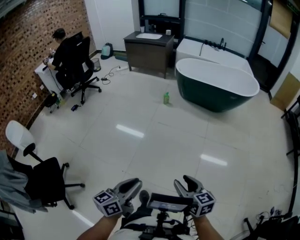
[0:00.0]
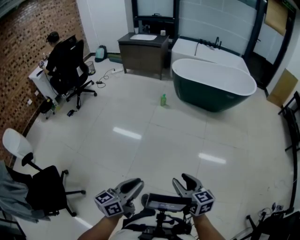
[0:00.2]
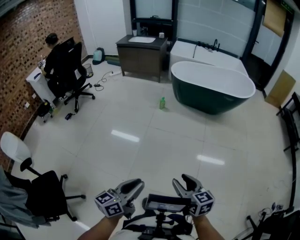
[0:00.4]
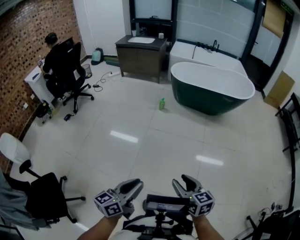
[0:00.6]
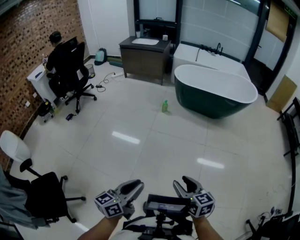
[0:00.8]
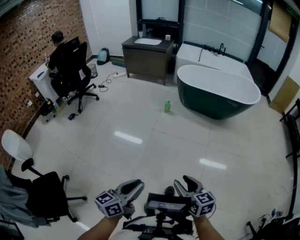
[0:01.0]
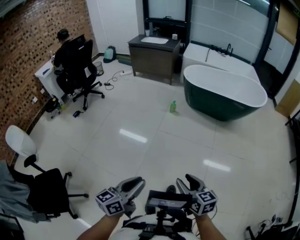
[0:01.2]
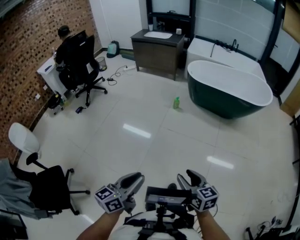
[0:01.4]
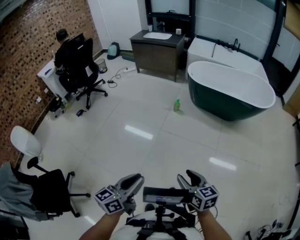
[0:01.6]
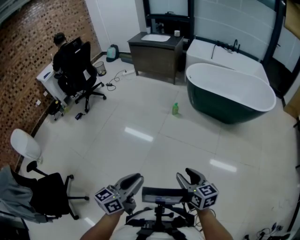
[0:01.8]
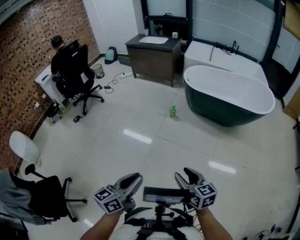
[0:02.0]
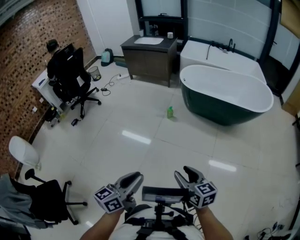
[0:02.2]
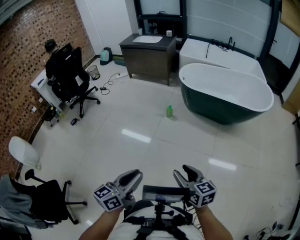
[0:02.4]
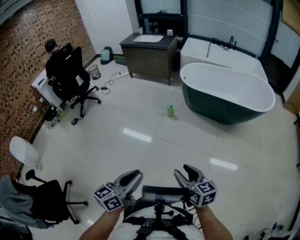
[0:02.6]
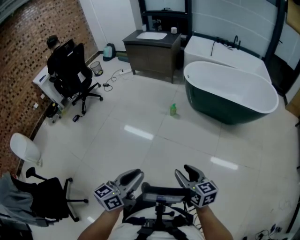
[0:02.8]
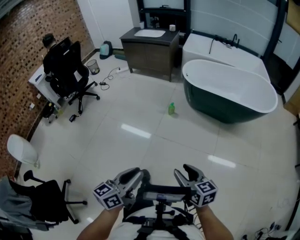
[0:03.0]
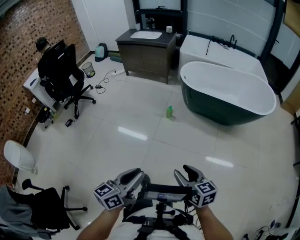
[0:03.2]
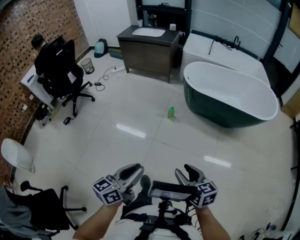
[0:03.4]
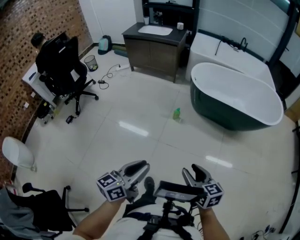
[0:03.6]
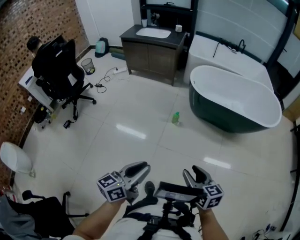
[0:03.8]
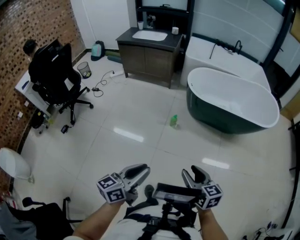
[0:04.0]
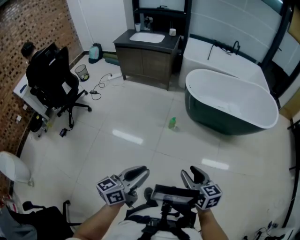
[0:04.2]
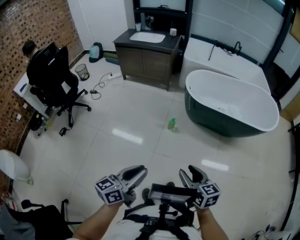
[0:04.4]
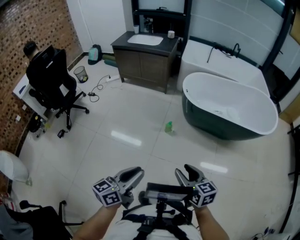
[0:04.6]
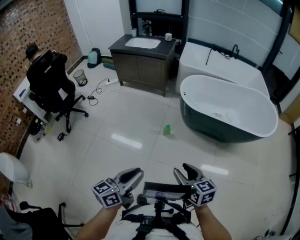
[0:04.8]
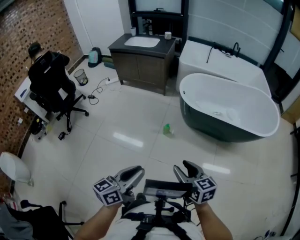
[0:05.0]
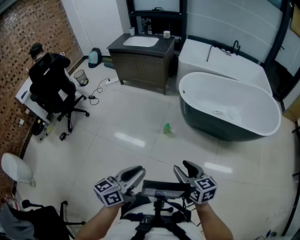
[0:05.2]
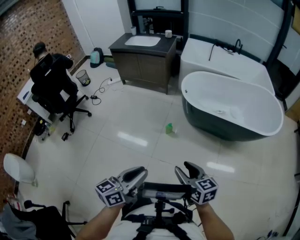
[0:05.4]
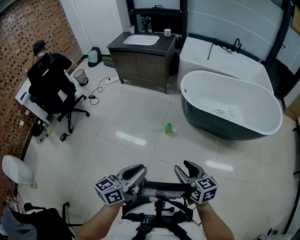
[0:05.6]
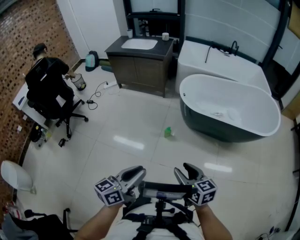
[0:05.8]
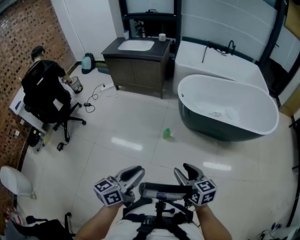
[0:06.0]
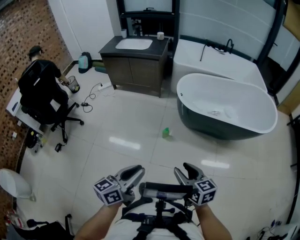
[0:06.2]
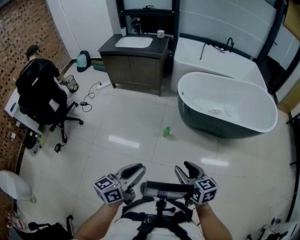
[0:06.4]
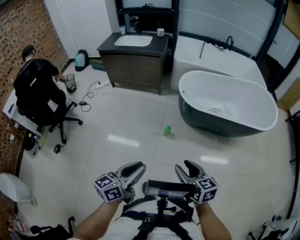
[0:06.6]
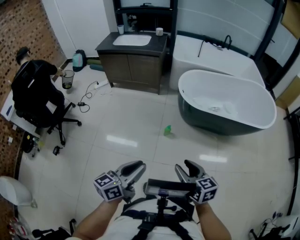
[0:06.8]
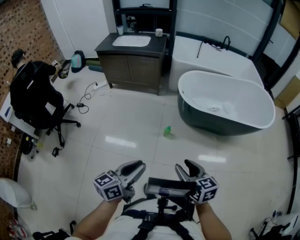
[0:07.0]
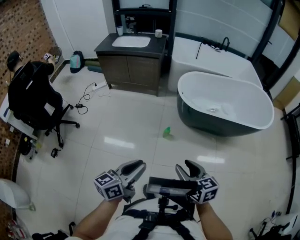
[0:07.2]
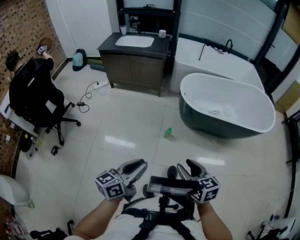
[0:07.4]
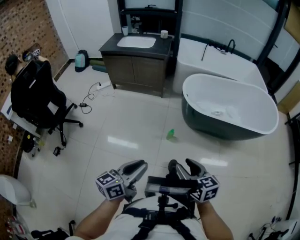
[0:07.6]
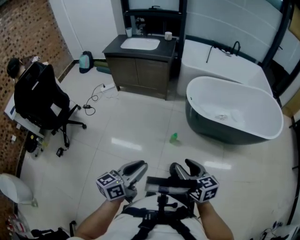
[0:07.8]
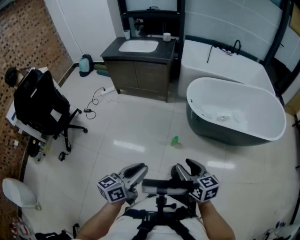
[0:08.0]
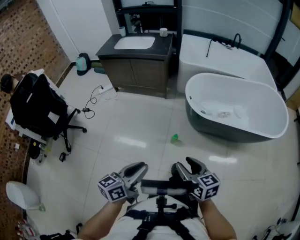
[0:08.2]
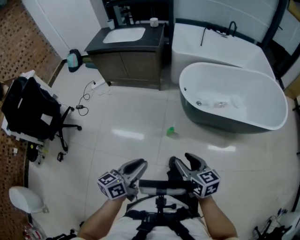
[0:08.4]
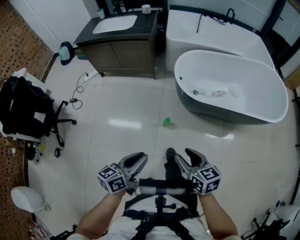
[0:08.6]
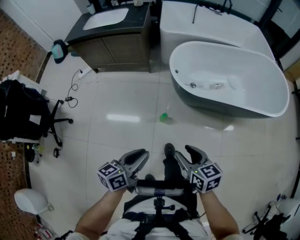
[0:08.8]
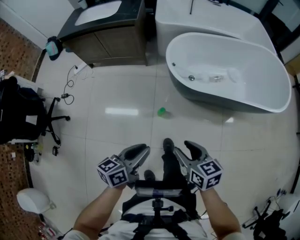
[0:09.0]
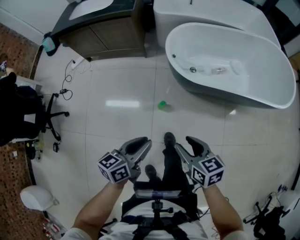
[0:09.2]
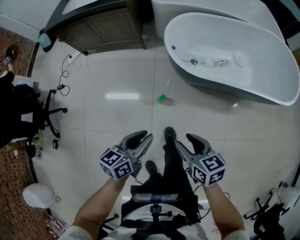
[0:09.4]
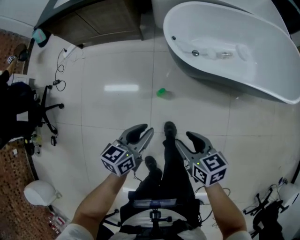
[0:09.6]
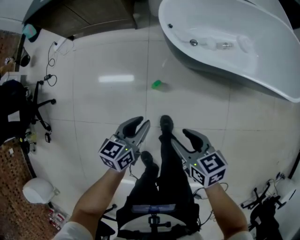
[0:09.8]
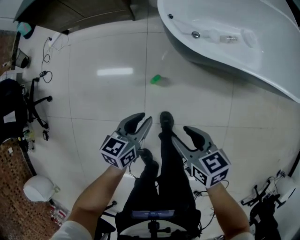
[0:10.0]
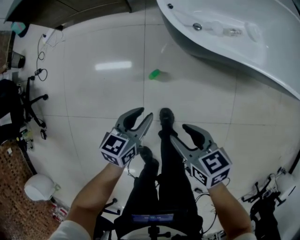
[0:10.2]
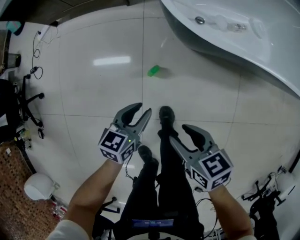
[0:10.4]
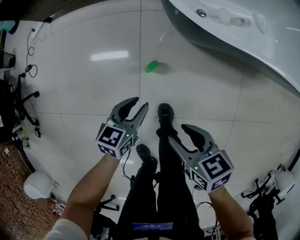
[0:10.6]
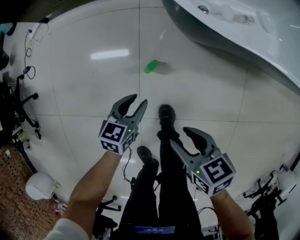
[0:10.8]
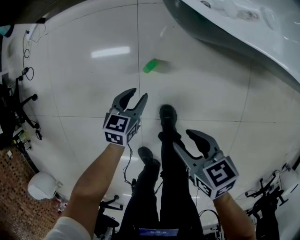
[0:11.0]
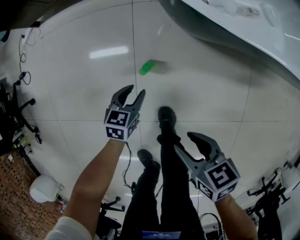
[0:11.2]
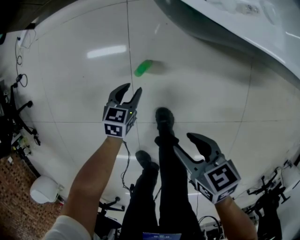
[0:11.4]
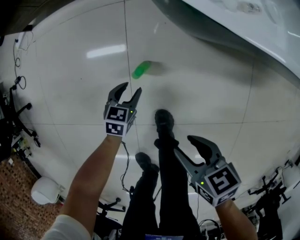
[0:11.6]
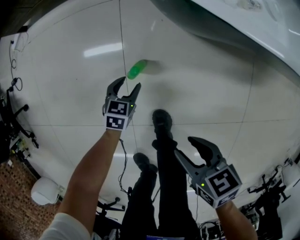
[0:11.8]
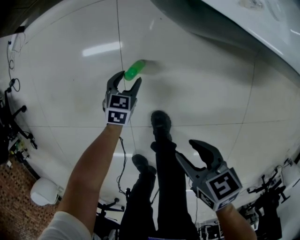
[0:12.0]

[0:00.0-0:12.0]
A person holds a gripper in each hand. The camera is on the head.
0:00.0 to 0:01.6: The two grippers go about 20 cm forward.
0:01.6 to 0:03.0: Both grippers travel together forward, some 15 cm.
0:03.0 to 0:04.4: Both grippers travel together forward and to the left, roughly 25 cm.
0:04.4 to 0:06.0: Both grippers travel together forward, about 10 cm.
0:06.0 to 0:07.6: The grippers both shift to the left and forward by about 10 cm.
0:07.6 to 0:09.0: The right gripper moves forward, downward and to the right, about 20 cm. Meanwhile the left gripper heads forward, to the right and downward, covering about 25 cm.
0:09.0 to 0:10.4: The right gripper goes some 25 cm downward. The left gripper goes roughly 30 cm downward and forward, and rotates about 20 degrees.
0:10.4 to 0:12.0: The right gripper heads downward, covering about 15 cm, while the left gripper moves downward, some 30 cm, turns by about 30 degrees, and opens its fingers.

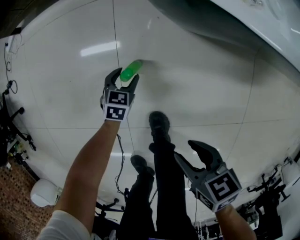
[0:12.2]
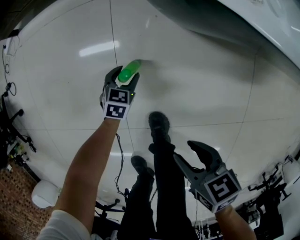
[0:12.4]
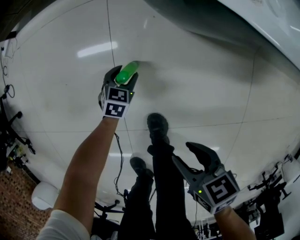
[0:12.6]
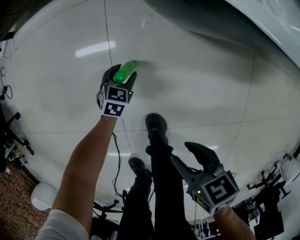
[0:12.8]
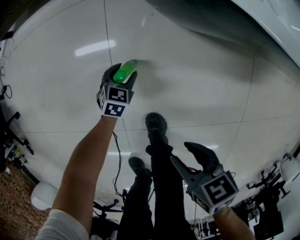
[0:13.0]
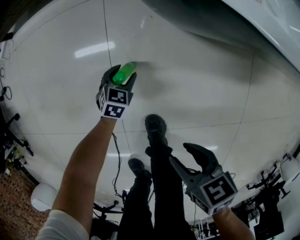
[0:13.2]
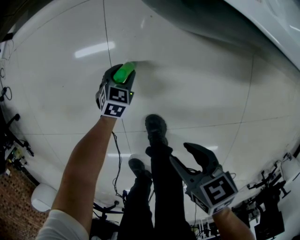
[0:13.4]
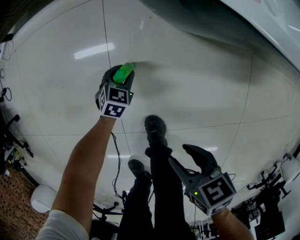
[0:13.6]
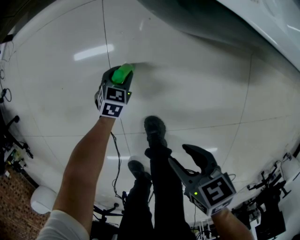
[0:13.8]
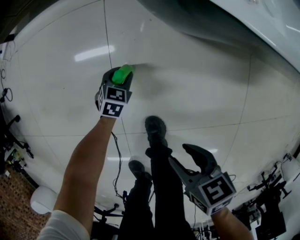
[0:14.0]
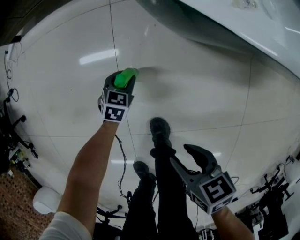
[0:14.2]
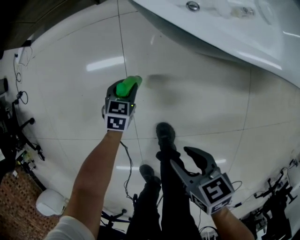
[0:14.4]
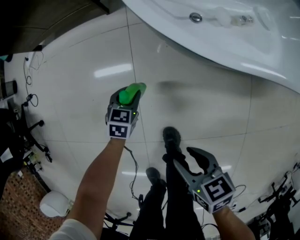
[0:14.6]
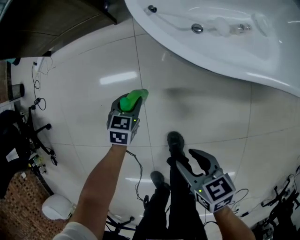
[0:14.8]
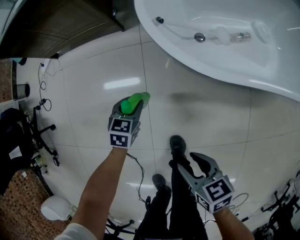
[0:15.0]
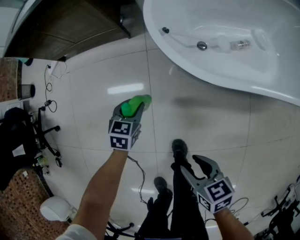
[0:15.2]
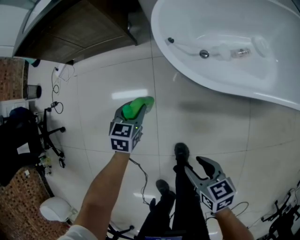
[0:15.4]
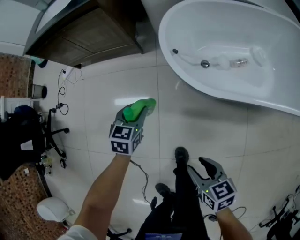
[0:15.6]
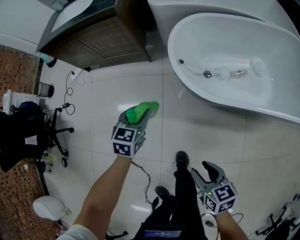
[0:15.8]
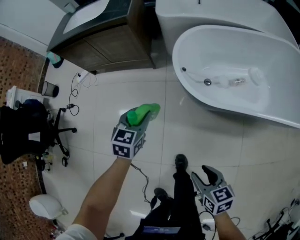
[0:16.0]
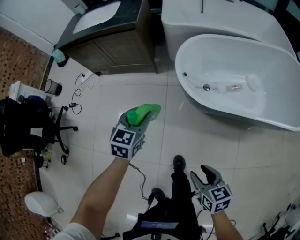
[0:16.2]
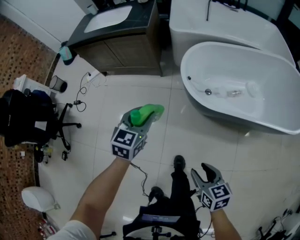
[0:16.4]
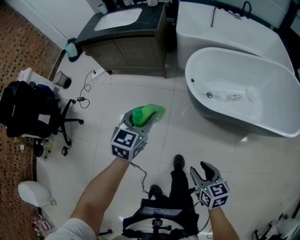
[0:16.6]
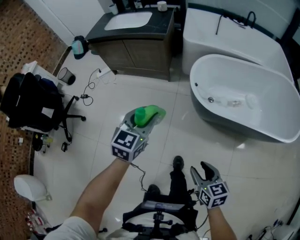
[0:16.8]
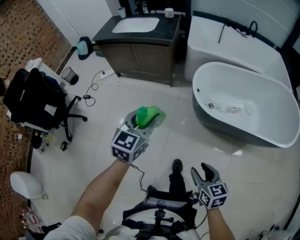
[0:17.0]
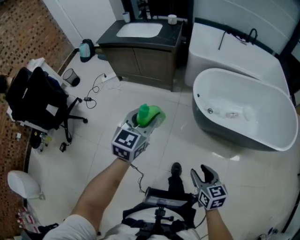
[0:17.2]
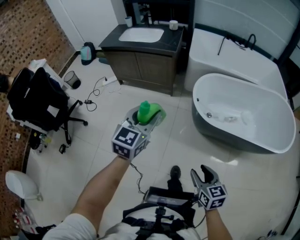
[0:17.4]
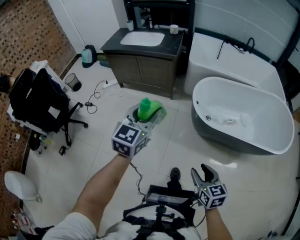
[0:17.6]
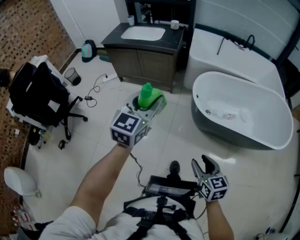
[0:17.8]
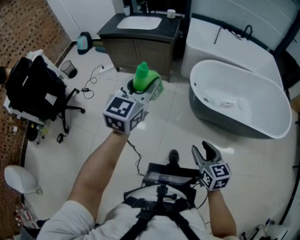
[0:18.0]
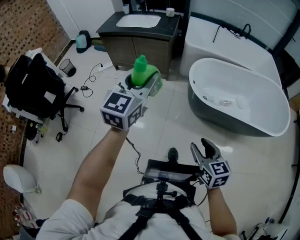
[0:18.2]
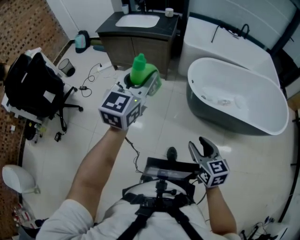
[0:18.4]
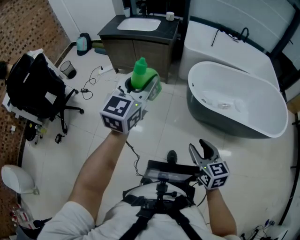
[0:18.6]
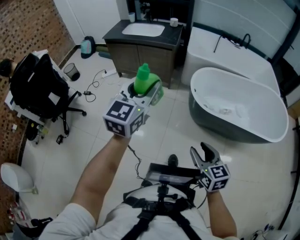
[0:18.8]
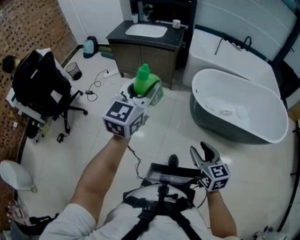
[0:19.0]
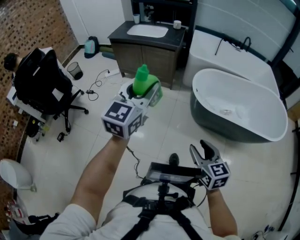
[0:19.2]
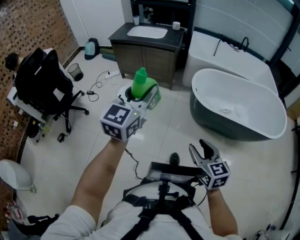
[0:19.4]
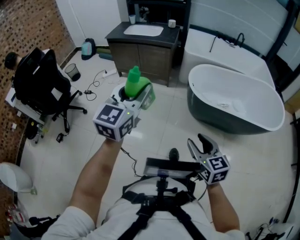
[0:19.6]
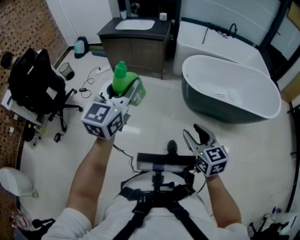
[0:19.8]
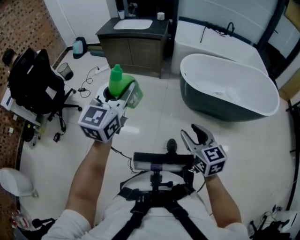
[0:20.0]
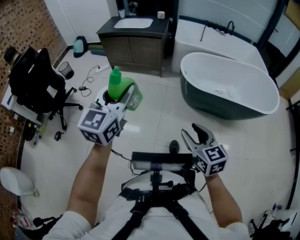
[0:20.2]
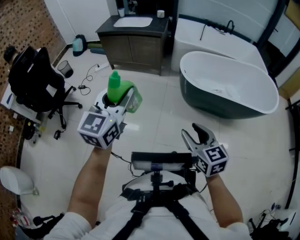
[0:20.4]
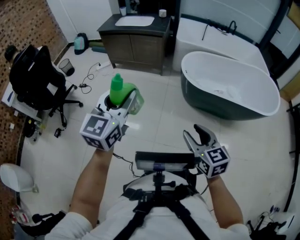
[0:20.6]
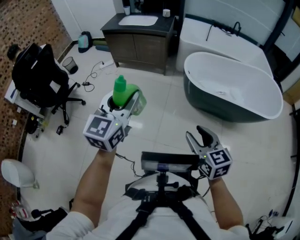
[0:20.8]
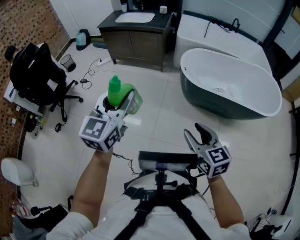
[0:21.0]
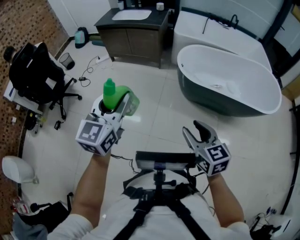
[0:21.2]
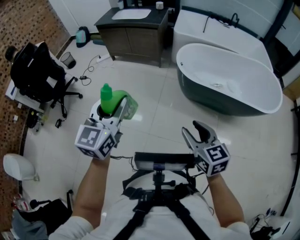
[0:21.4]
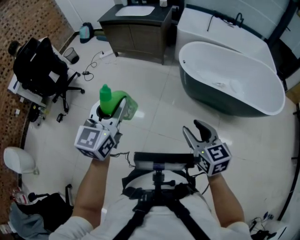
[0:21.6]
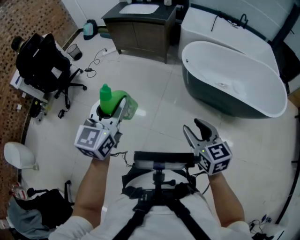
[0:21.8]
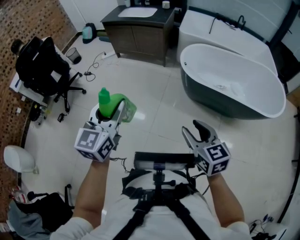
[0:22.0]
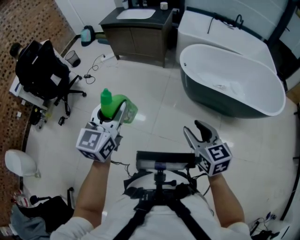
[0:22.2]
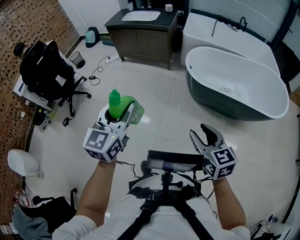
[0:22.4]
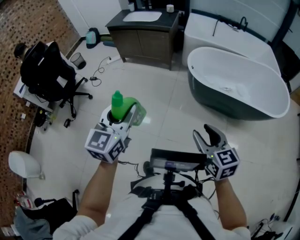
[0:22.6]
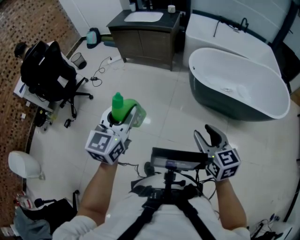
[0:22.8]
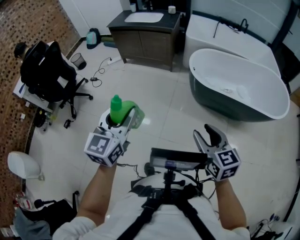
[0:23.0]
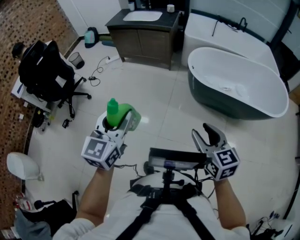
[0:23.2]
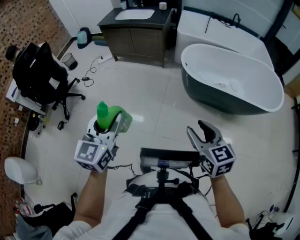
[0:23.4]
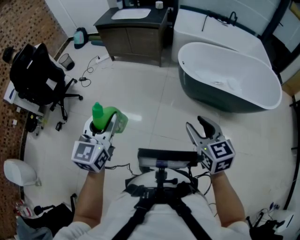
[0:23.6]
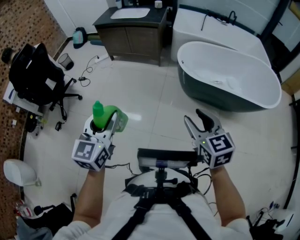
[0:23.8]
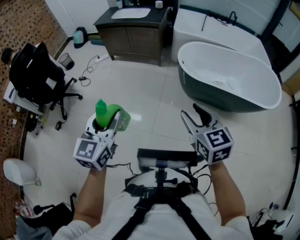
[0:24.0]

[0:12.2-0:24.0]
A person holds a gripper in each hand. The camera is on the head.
0:12.2 to 0:13.6: The grippers move only a little.
0:13.6 to 0:15.2: The left gripper shifts about 30 cm upward, while the right gripper shifts about 15 cm upward.
0:15.2 to 0:16.6: The right gripper goes approximately 25 cm upward. Meanwhile the left gripper shifts approximately 40 cm upward, and turns by approximately 20 degrees.
0:16.6 to 0:18.2: The right gripper heads upward and to the left, covering about 15 cm, while the left gripper goes some 25 cm upward, and turns by some 20 degrees.
0:18.2 to 0:19.6: The right gripper heads backward, covering some 10 cm. The left gripper travels backward by approximately 15 cm.
0:19.6 to 0:21.0: The right gripper heads backward, covering some 5 cm. Meanwhile the left gripper is displaced backward by roughly 10 cm.
0:21.0 to 0:22.6: The left gripper travels backward by approximately 5 cm.
0:22.6 to 0:24.0: The left gripper ends up roughly 5 cm from where it was, while the right gripper shifts by roughly 5 cm.
